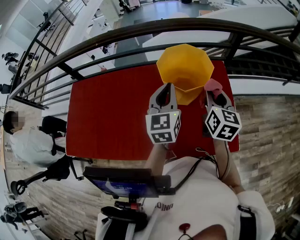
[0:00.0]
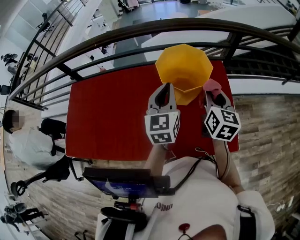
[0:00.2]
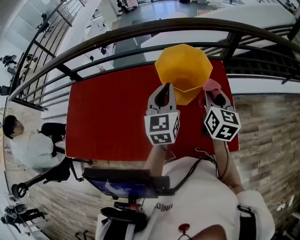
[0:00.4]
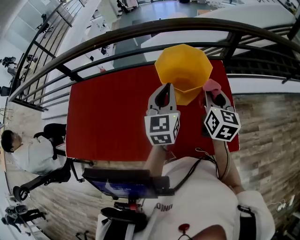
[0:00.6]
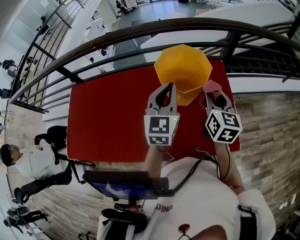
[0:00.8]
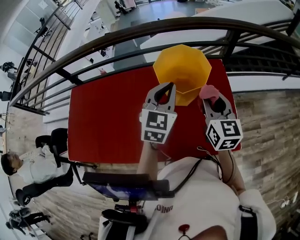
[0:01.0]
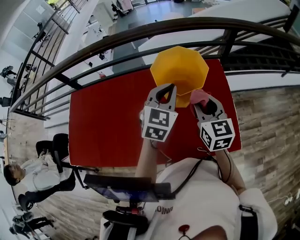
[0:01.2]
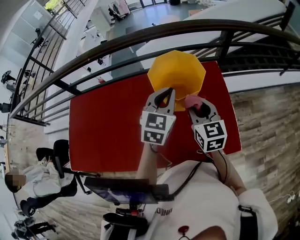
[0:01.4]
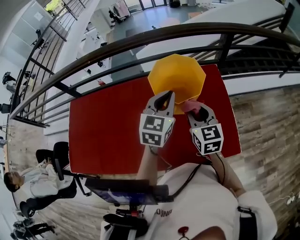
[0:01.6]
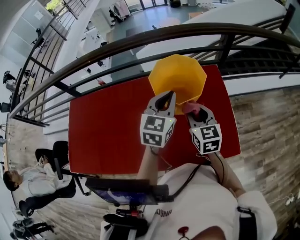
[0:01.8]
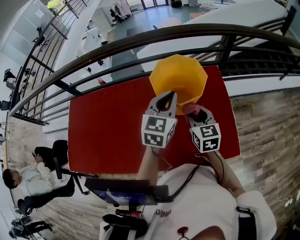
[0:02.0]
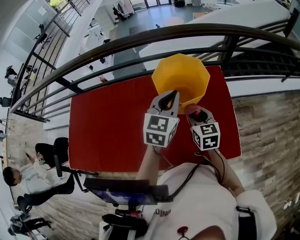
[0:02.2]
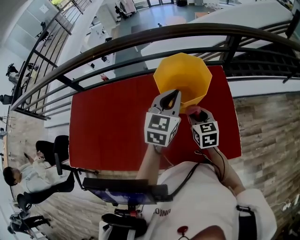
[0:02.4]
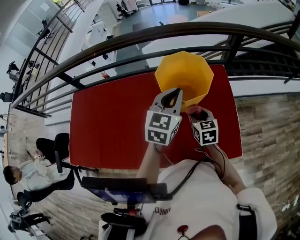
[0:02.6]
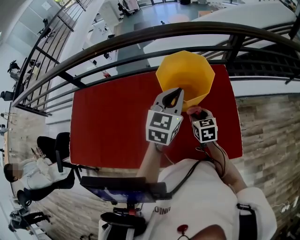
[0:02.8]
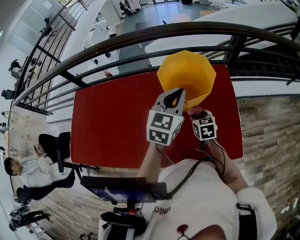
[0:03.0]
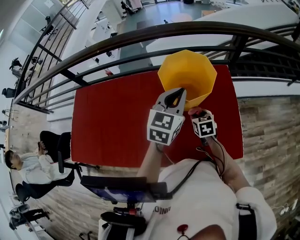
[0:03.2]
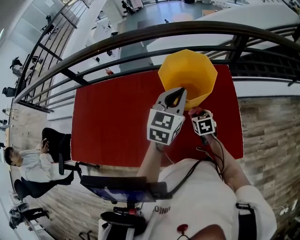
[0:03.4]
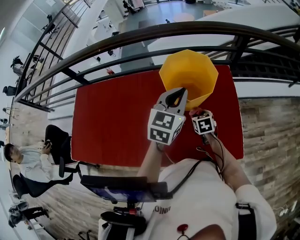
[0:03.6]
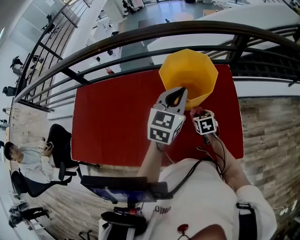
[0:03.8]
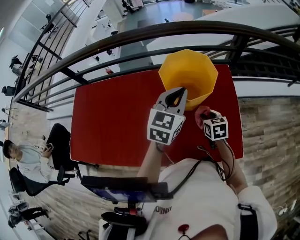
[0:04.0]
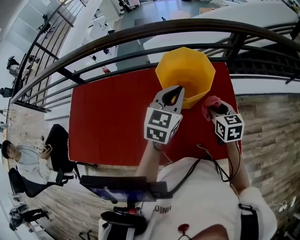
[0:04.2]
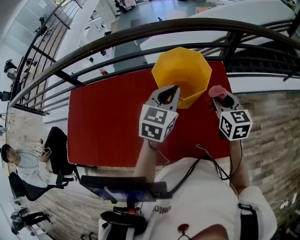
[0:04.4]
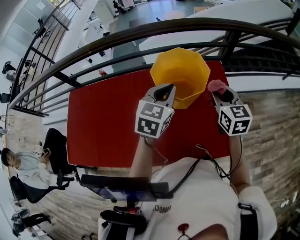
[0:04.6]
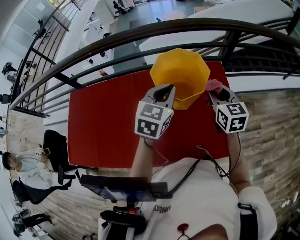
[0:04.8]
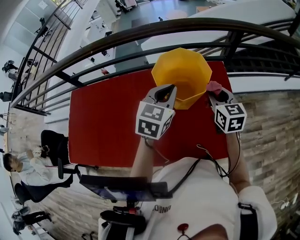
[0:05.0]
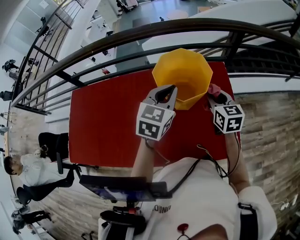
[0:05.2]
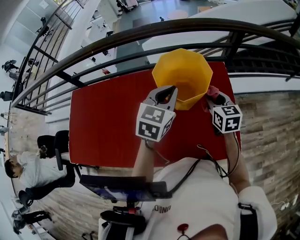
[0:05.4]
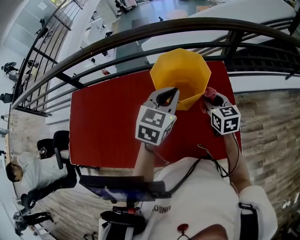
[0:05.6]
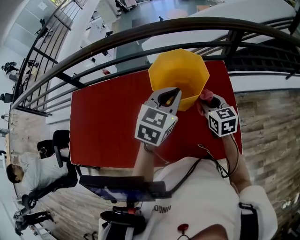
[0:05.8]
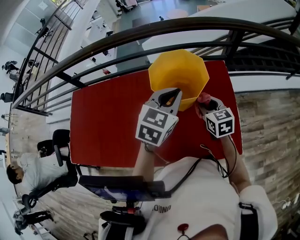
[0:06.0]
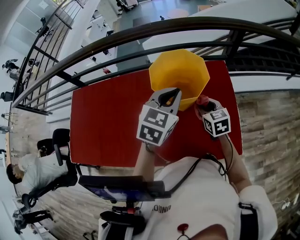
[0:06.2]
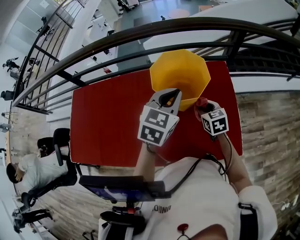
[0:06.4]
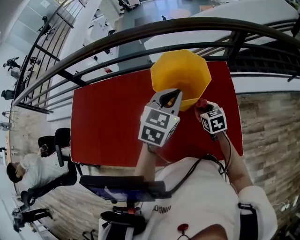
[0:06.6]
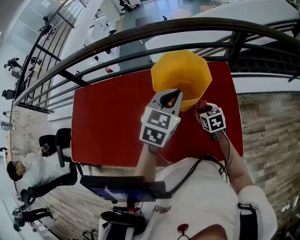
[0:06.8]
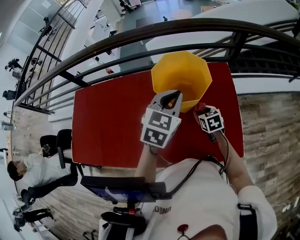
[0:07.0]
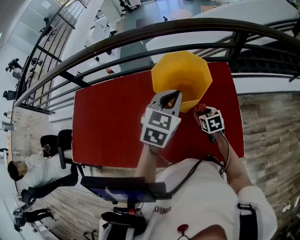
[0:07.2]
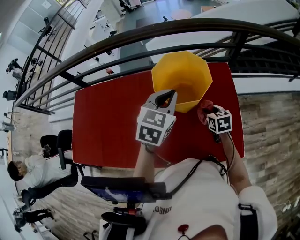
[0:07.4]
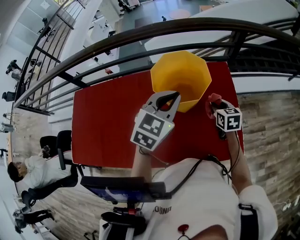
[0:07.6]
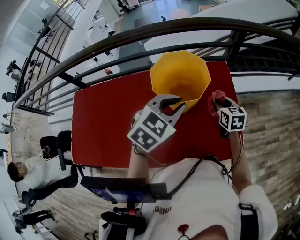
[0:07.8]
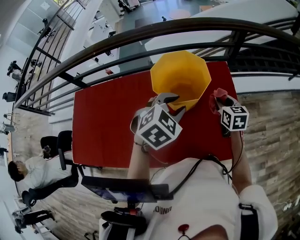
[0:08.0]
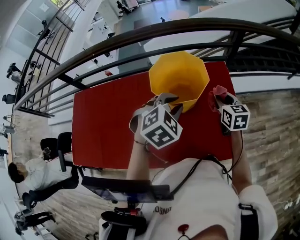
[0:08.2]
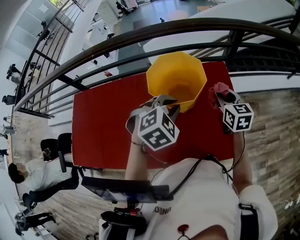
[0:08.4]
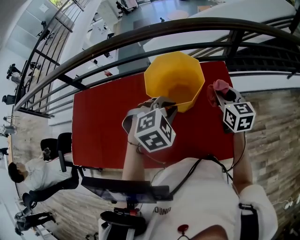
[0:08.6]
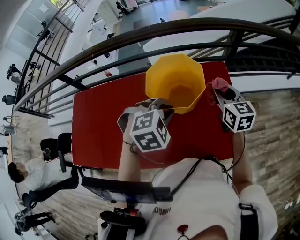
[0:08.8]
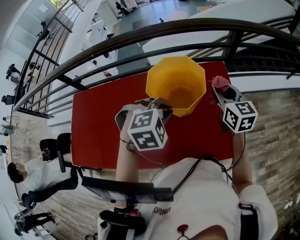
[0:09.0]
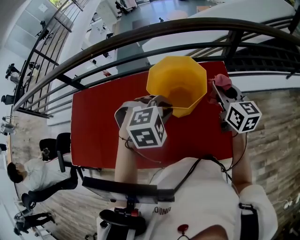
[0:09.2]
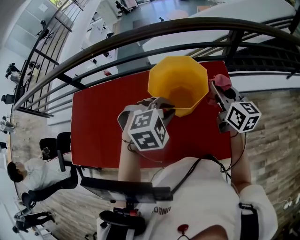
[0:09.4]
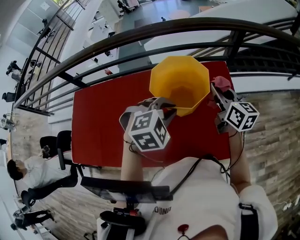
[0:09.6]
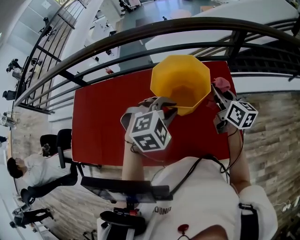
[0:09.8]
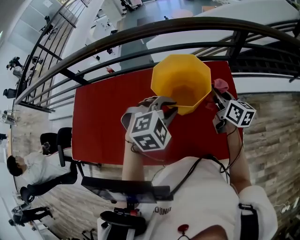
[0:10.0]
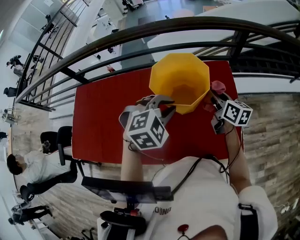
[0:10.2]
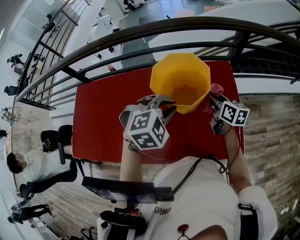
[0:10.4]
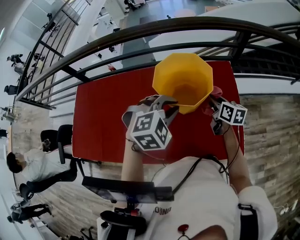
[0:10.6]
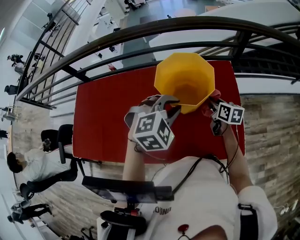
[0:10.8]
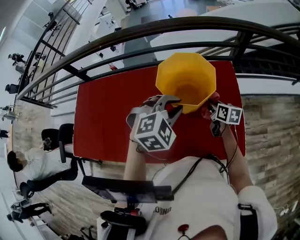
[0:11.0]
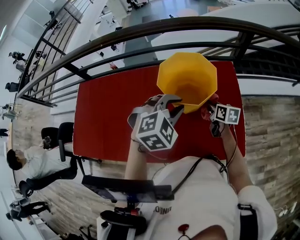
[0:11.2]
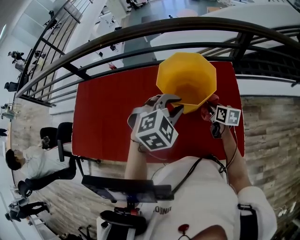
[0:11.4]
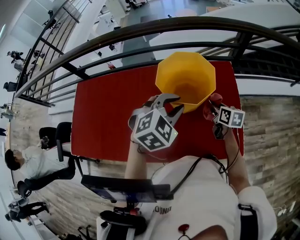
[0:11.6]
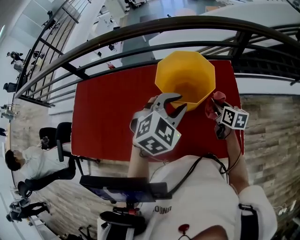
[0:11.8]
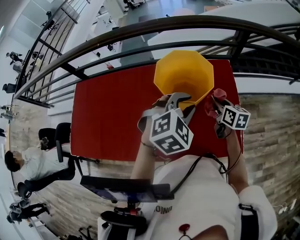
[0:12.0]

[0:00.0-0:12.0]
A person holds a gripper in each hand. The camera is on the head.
0:00.0 to 0:01.6: The right gripper heads to the left, covering about 5 cm. Meanwhile the left gripper swivels approximately 20 degrees.
0:01.6 to 0:03.0: The right gripper is displaced downward by roughly 15 cm, and changes its angle by some 20 degrees.
0:03.0 to 0:04.4: The right gripper shifts some 20 cm upward and to the right.
0:04.4 to 0:06.0: The right gripper shifts roughly 10 cm downward and to the left.
0:06.0 to 0:07.6: The right gripper heads to the right and downward, covering approximately 10 cm.
0:07.6 to 0:09.0: The left gripper moves downward, roughly 5 cm, tips its fingers downward by about 40 degrees, and opens and closes again; the right gripper shifts some 15 cm upward, and swivels approximately 20 degrees.
0:09.0 to 0:10.4: The right gripper goes some 10 cm downward, and turns by about 30 degrees.
0:10.4 to 0:12.0: The left gripper goes about 5 cm to the right; the right gripper travels downward and back again, about 10 cm each way.

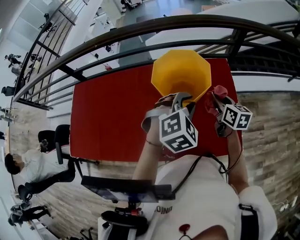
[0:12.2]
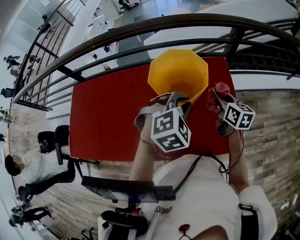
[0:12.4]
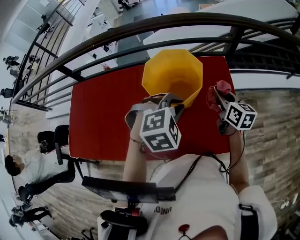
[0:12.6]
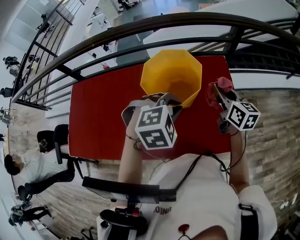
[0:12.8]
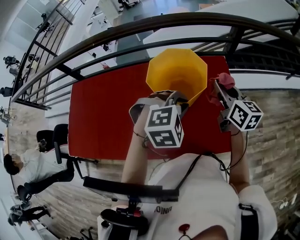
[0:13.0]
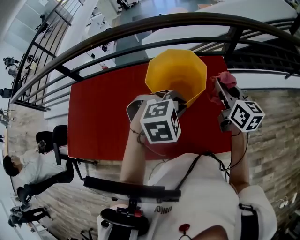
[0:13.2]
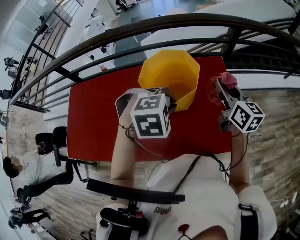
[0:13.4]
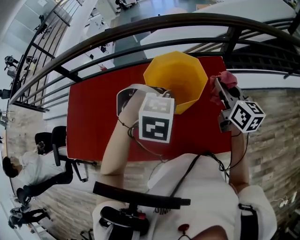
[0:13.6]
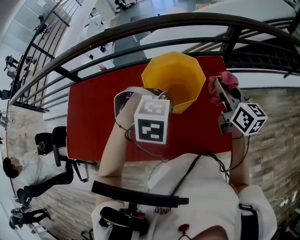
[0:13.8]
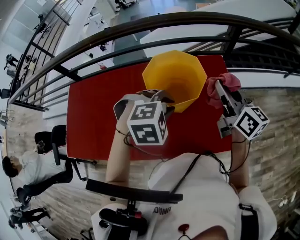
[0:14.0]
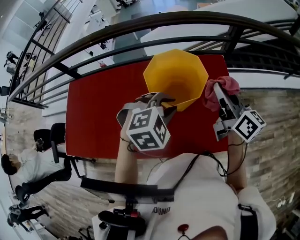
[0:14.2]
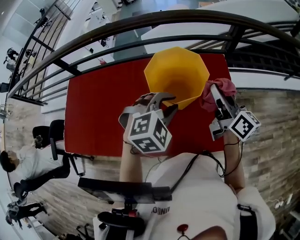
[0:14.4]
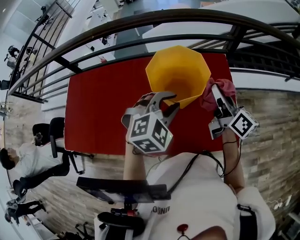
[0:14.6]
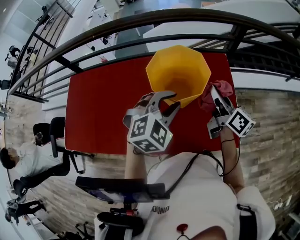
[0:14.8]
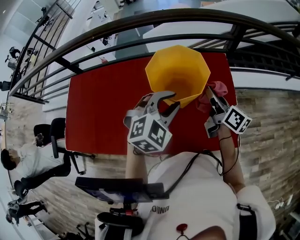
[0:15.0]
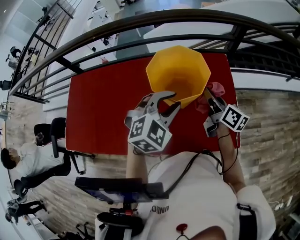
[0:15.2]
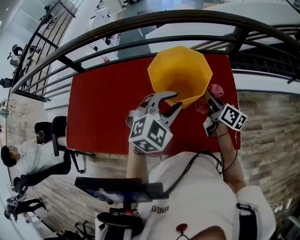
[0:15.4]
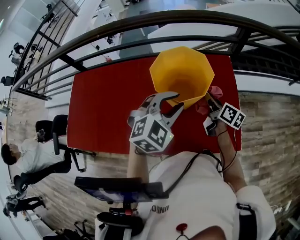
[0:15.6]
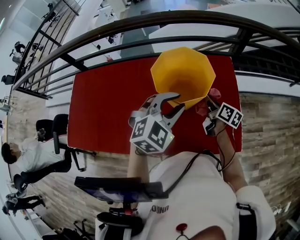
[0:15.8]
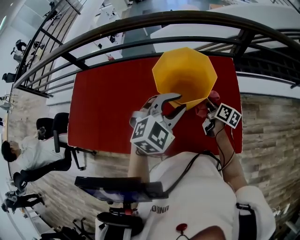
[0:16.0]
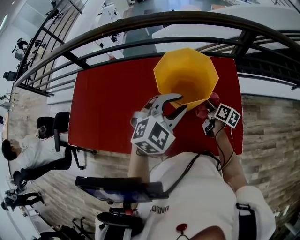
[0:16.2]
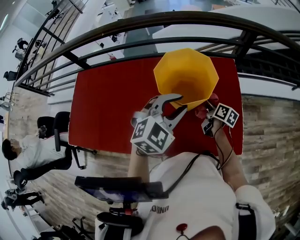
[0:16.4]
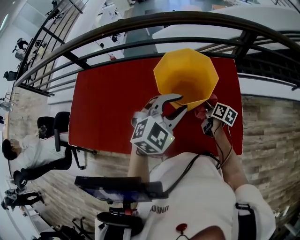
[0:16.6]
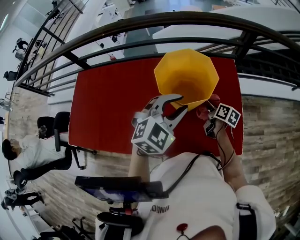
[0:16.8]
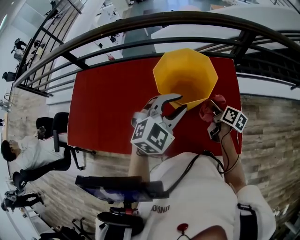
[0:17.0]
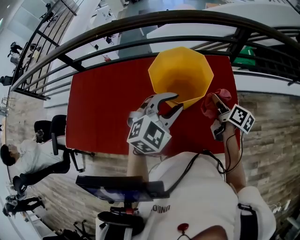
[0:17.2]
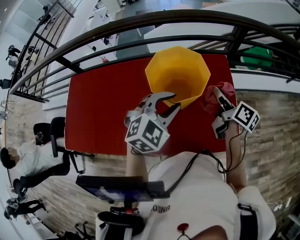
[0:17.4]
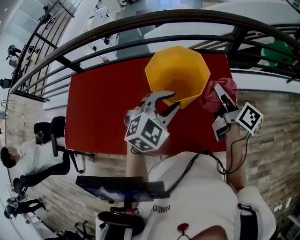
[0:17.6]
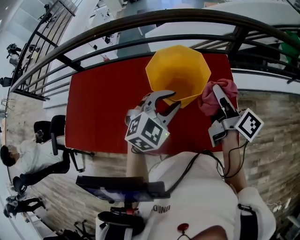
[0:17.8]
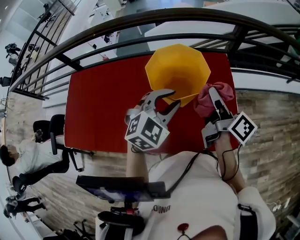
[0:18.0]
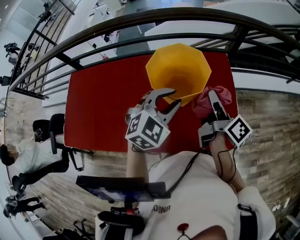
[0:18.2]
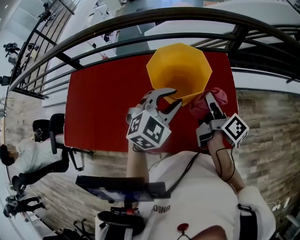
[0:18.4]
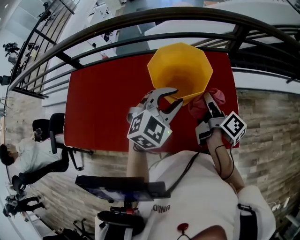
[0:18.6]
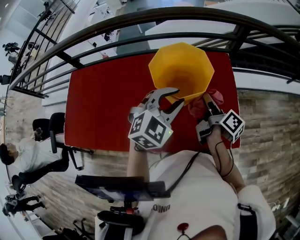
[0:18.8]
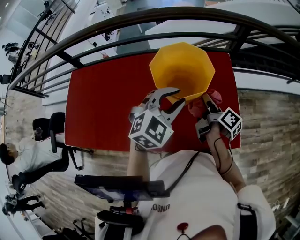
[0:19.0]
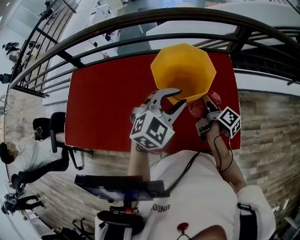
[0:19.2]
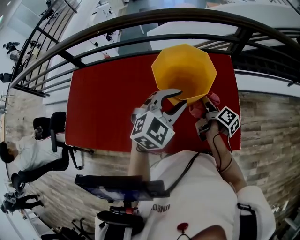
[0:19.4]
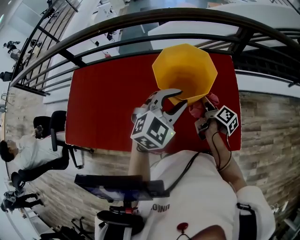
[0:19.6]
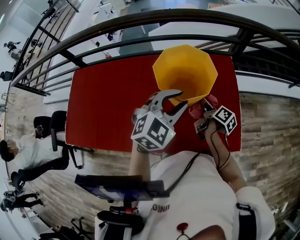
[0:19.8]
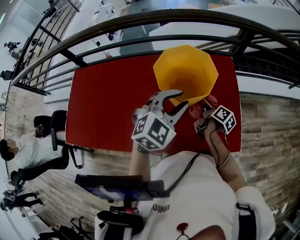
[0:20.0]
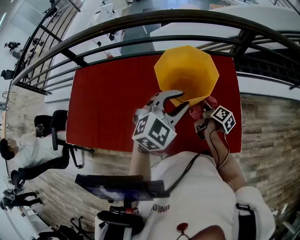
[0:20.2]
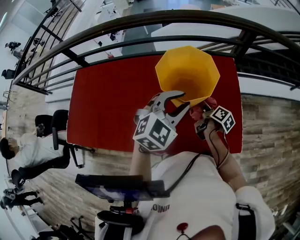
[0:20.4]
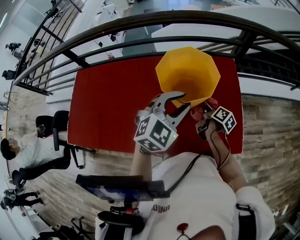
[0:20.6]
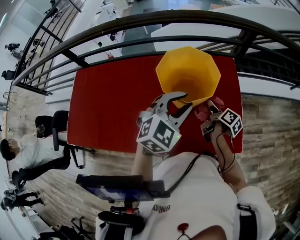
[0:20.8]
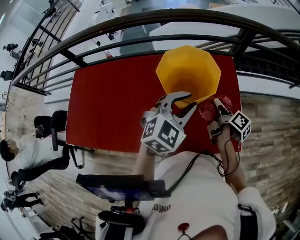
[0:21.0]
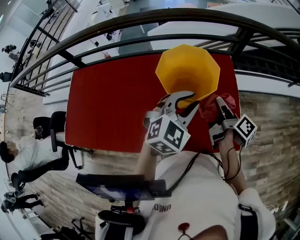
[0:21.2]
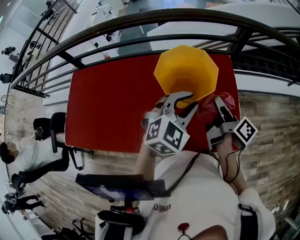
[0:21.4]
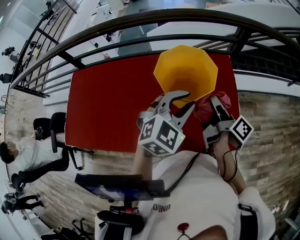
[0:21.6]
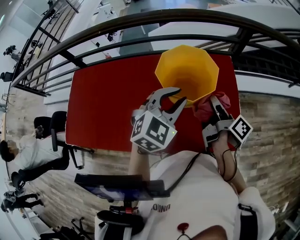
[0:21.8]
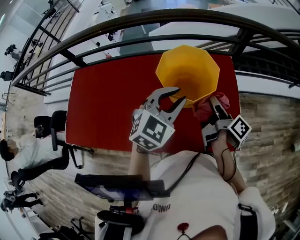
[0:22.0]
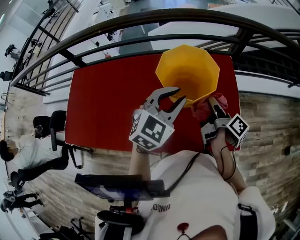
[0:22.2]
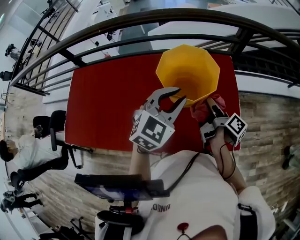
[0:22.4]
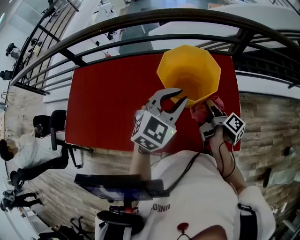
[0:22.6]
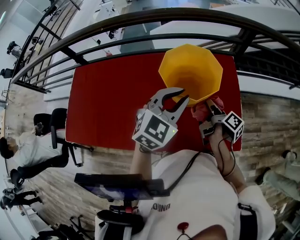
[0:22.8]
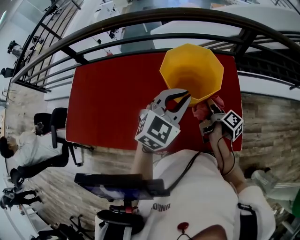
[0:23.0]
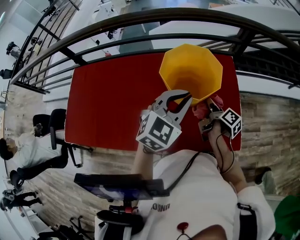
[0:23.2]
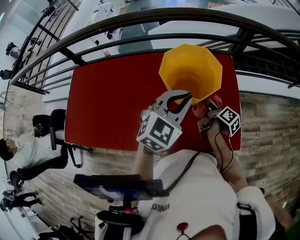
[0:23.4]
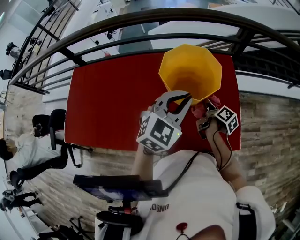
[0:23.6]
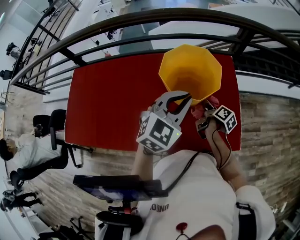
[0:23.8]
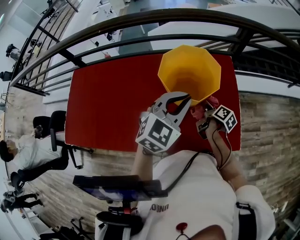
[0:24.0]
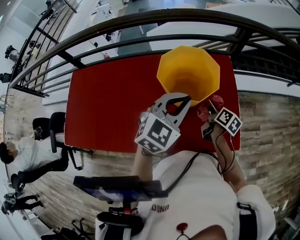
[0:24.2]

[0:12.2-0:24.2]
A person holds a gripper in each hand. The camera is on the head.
0:12.2 to 0:13.8: The left gripper moves about 5 cm, and changes its angle by roughly 40 degrees; the right gripper heads upward, covering roughly 15 cm.
0:13.8 to 0:15.2: The right gripper is displaced downward by some 10 cm, and changes its angle by some 20 degrees; the left gripper tips its fingers upward by some 40 degrees.
0:15.2 to 0:16.6: The right gripper heads downward, covering roughly 15 cm, and swivels about 20 degrees.
0:16.6 to 0:18.2: The right gripper is displaced upward by roughly 20 cm, and changes its angle by some 40 degrees.
0:18.2 to 0:19.8: The right gripper is displaced downward by about 20 cm, and changes its angle by some 20 degrees.
0:19.8 to 0:21.2: The right gripper moves upward, some 10 cm.
0:21.2 to 0:22.6: The right gripper changes place by about 5 cm.
0:22.6 to 0:24.2: The right gripper is displaced downward by about 5 cm, and rotates roughly 30 degrees.
